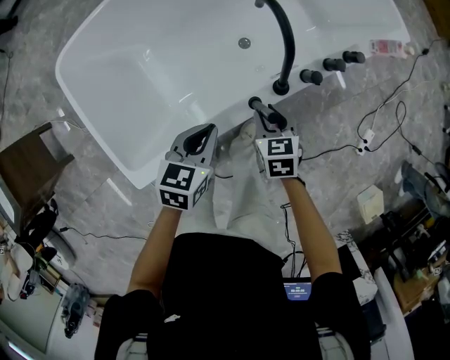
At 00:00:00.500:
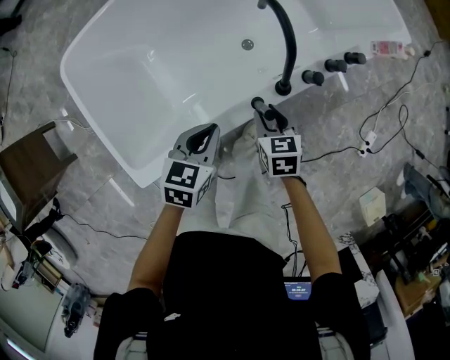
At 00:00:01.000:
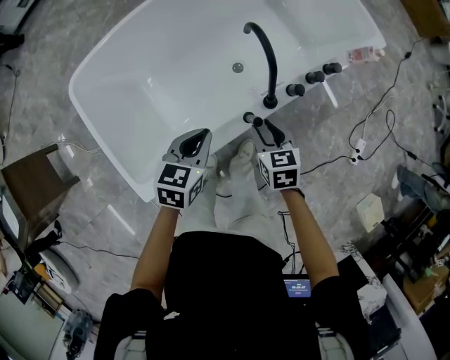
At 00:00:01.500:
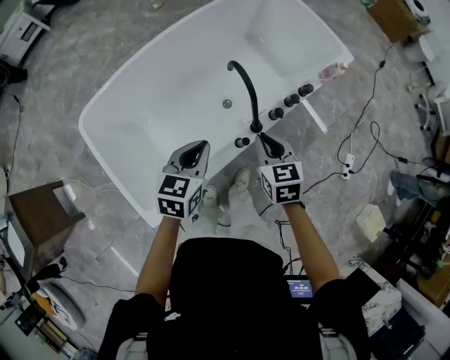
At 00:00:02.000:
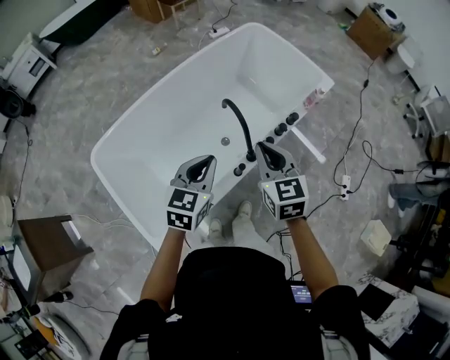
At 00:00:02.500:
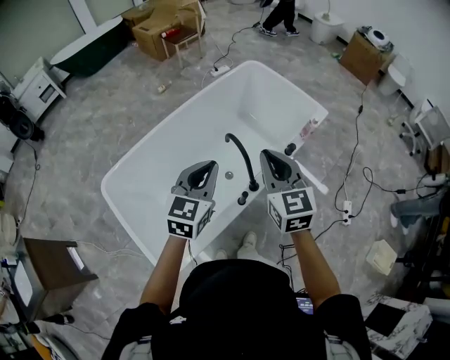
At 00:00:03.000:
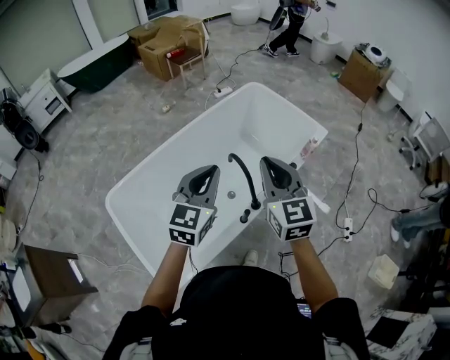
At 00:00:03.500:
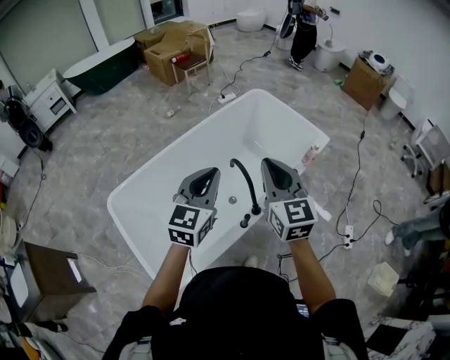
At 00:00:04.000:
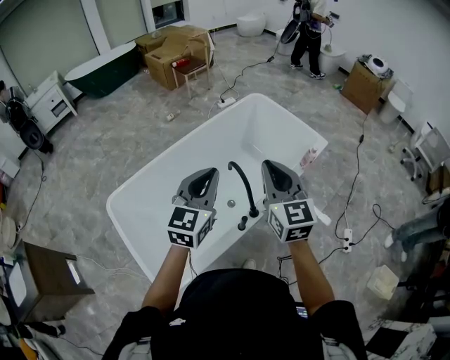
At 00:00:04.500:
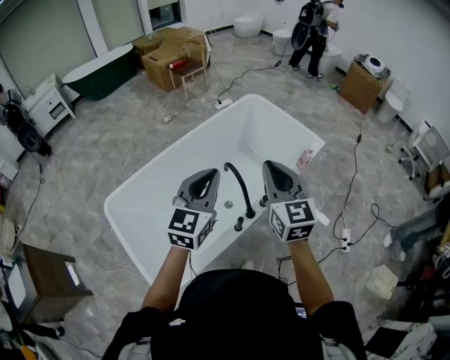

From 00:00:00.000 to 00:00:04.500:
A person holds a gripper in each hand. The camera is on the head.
From 00:00:00.000 to 00:00:02.000: The two grippers go some 30 cm upward. The right gripper tips its fingers upward by about 30 degrees, and closes up, while the left gripper changes its angle by roughly 30 degrees.
From 00:00:02.000 to 00:00:04.500: The grippers both shift upward by approximately 15 cm. The left gripper turns by roughly 20 degrees; the right gripper swivels approximately 20 degrees.

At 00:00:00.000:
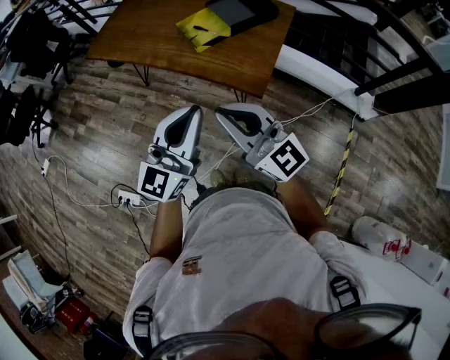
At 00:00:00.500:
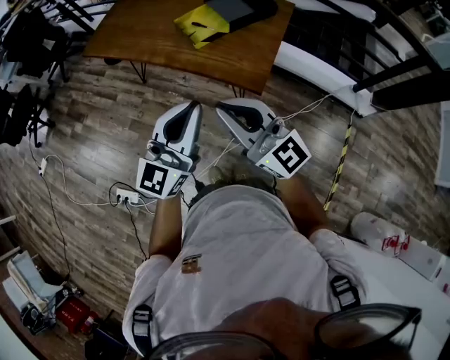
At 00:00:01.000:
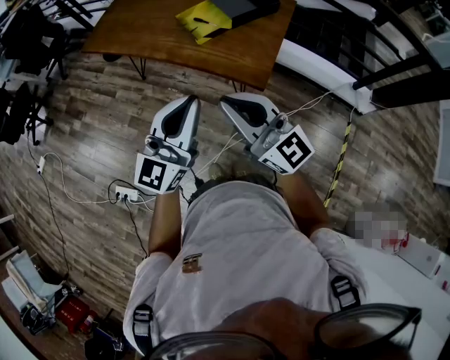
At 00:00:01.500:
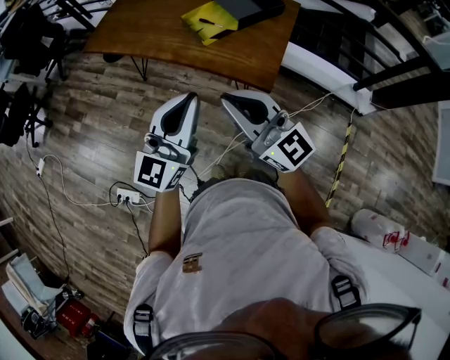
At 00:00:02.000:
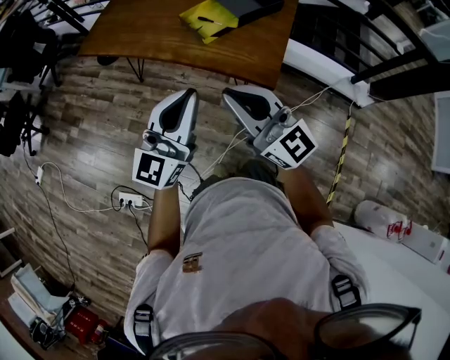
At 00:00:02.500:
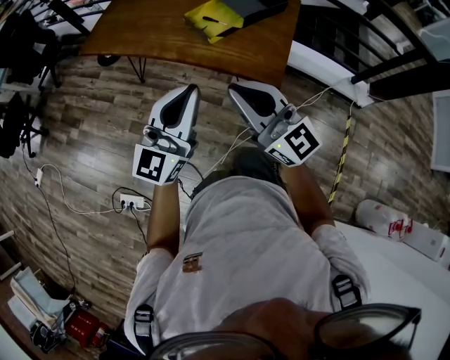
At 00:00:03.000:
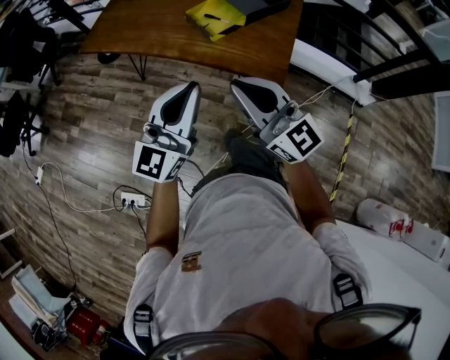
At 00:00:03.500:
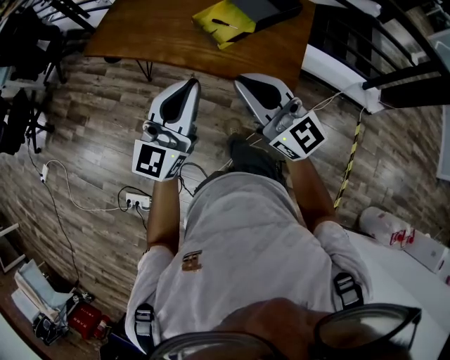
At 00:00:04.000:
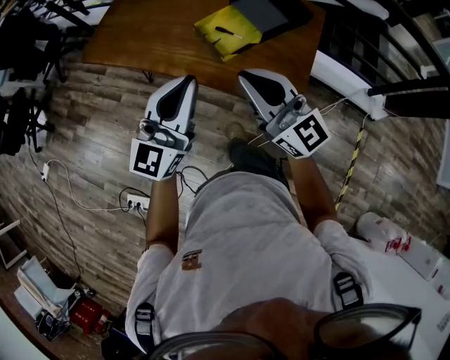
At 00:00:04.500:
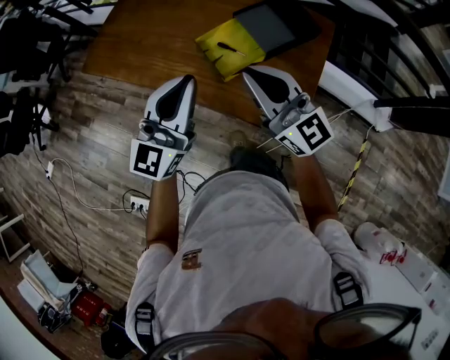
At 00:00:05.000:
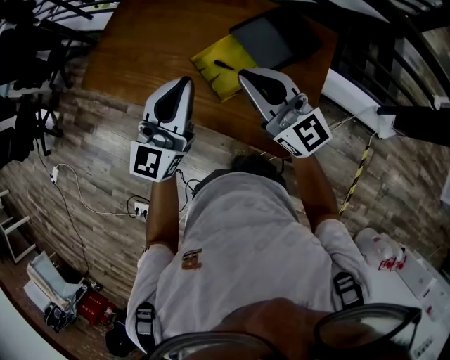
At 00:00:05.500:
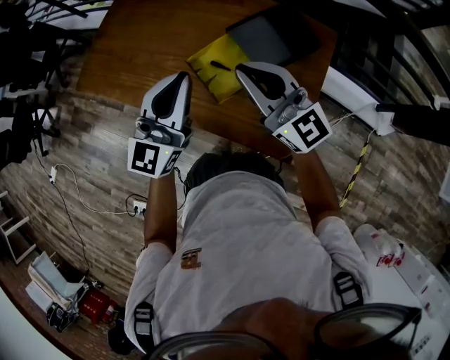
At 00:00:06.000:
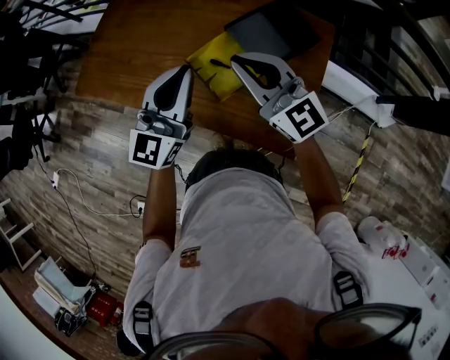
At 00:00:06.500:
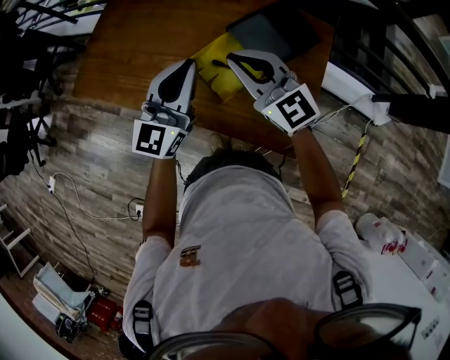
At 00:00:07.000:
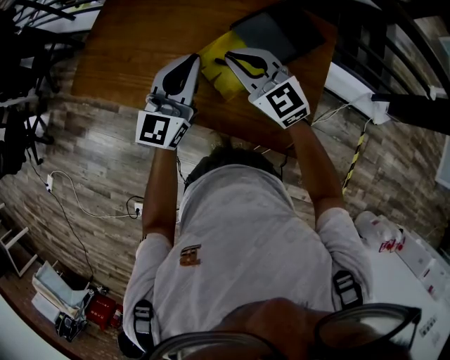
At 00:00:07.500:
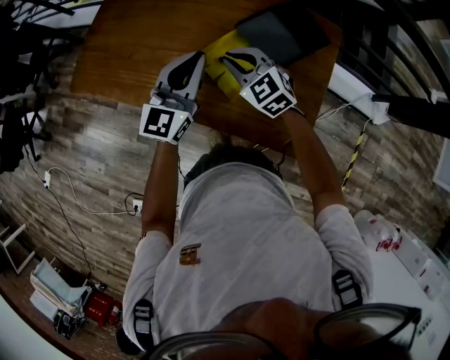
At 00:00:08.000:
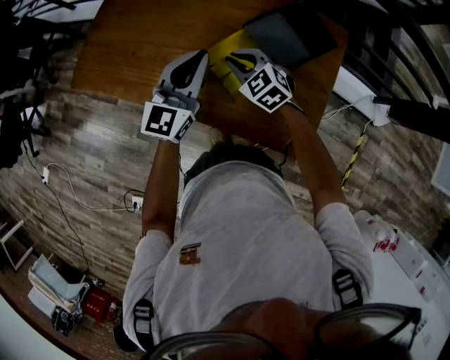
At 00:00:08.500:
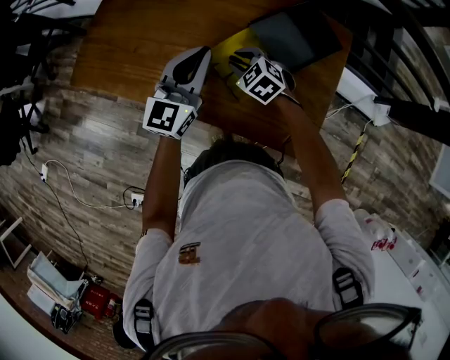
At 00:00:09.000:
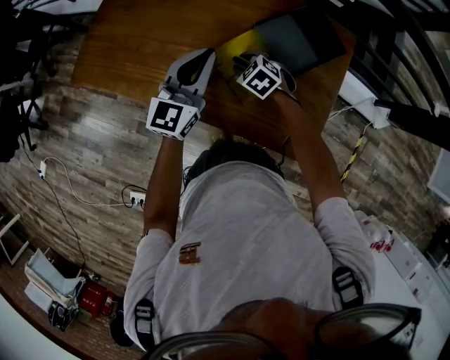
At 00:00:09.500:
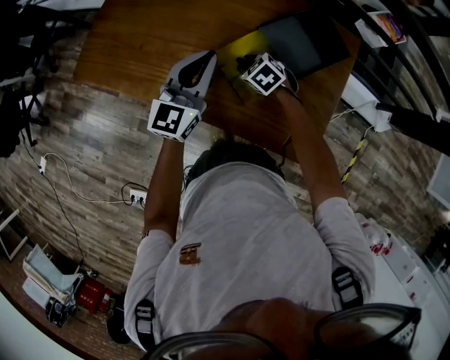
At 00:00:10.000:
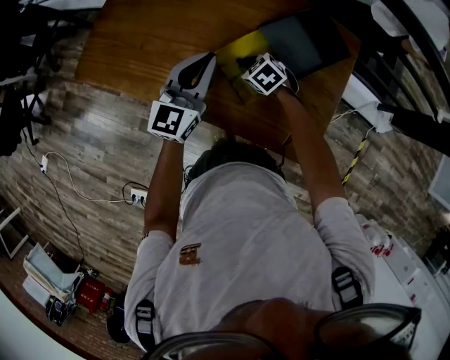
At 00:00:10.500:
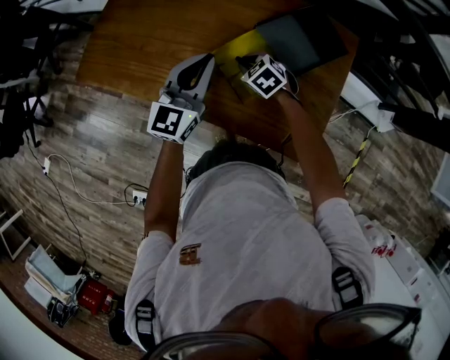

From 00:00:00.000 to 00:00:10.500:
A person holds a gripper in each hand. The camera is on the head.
From 00:00:00.000 to 00:00:02.000: The left gripper goes approximately 10 cm to the left and forward, while the right gripper moves to the left, roughly 10 cm.
From 00:00:02.000 to 00:00:04.000: The grippers both shift forward by roughly 20 cm.
From 00:00:04.000 to 00:00:06.500: Both grippers move forward, roughly 30 cm.
From 00:00:06.500 to 00:00:08.500: The right gripper goes some 25 cm downward, and points its fingers approximately 50 degrees further downward; the left gripper moves forward and downward, roughly 10 cm.

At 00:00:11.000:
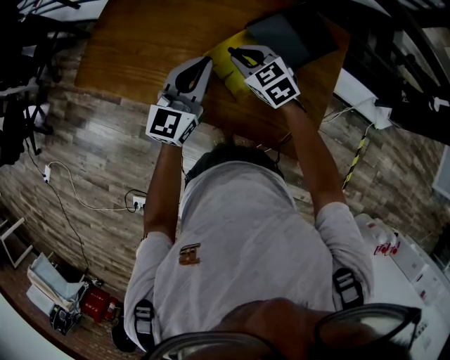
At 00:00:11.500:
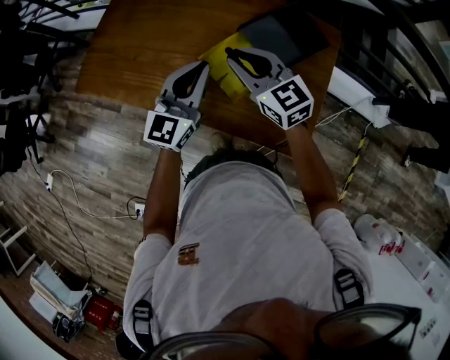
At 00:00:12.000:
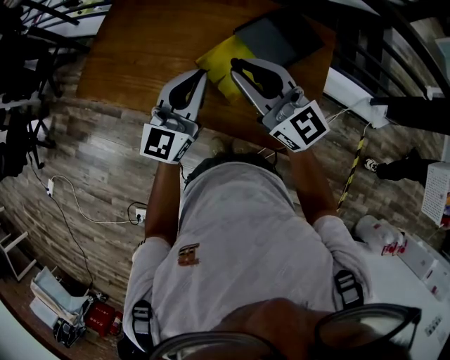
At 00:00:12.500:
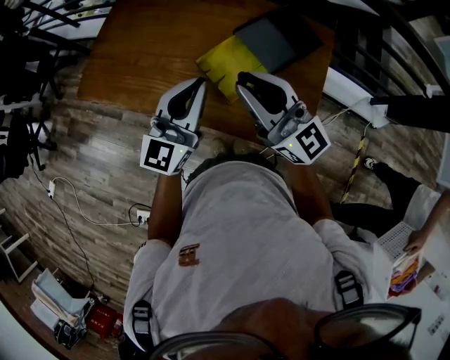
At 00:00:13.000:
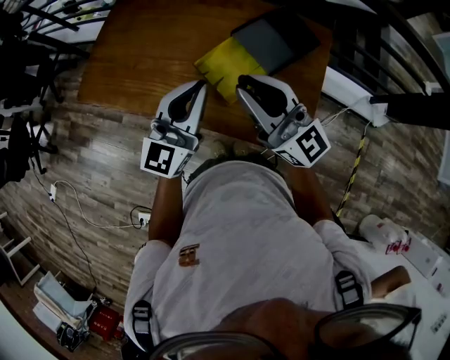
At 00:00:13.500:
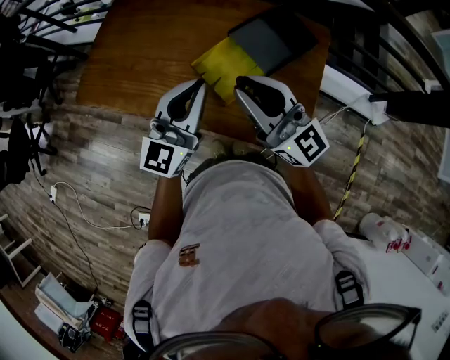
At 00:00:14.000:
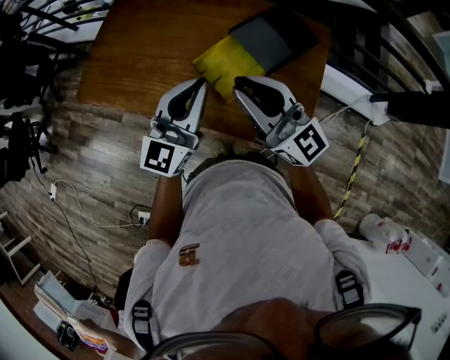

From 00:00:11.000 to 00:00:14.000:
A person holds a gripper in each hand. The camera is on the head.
From 00:00:11.000 to 00:00:12.500: The left gripper travels backward and upward by approximately 10 cm. Meanwhile the right gripper is displaced upward and backward by about 25 cm, and tilts its fingers about 50 degrees upward.
From 00:00:12.500 to 00:00:14.000: There are only small adjustments of the grippers.

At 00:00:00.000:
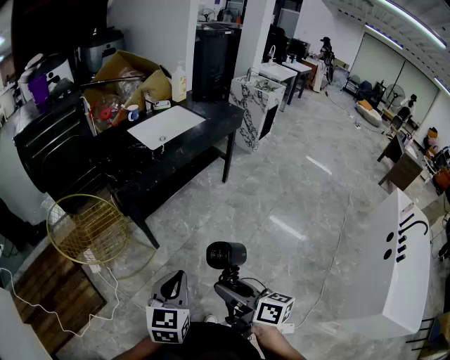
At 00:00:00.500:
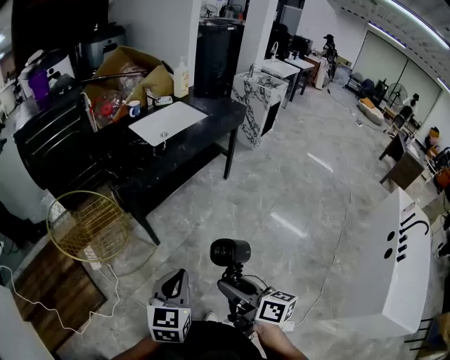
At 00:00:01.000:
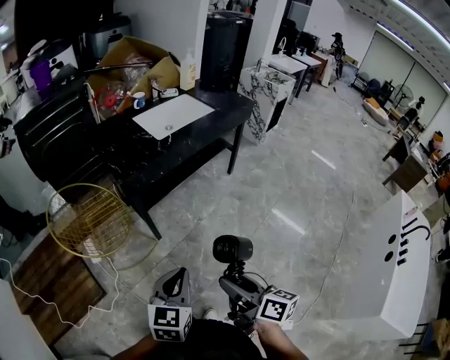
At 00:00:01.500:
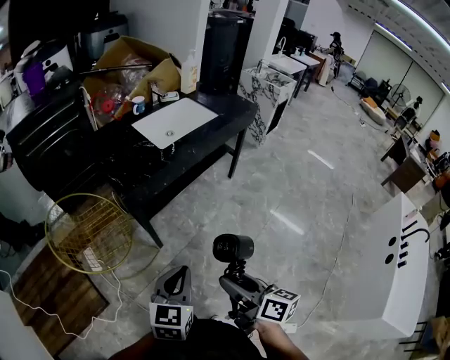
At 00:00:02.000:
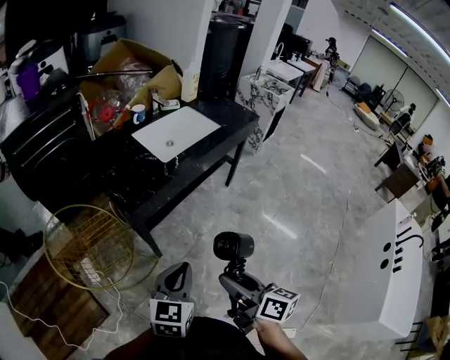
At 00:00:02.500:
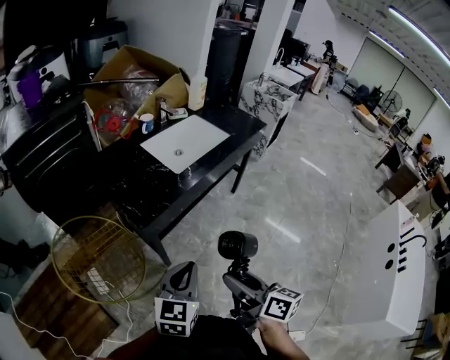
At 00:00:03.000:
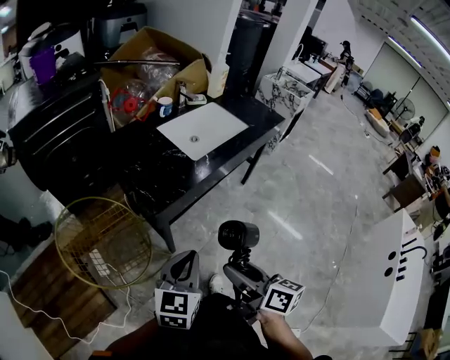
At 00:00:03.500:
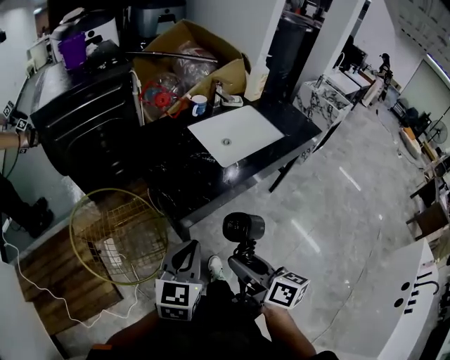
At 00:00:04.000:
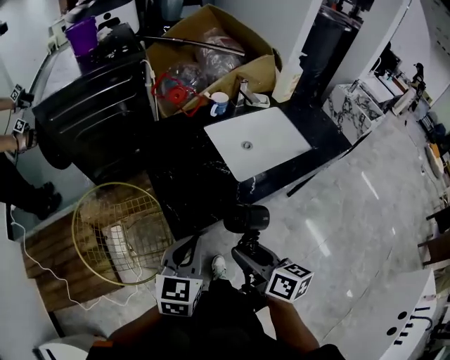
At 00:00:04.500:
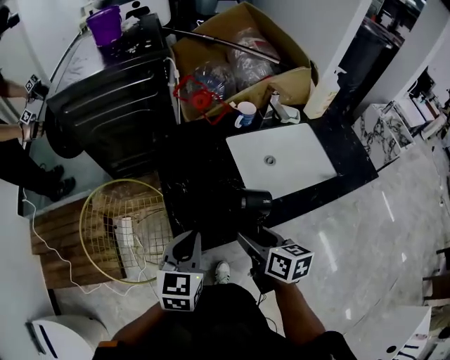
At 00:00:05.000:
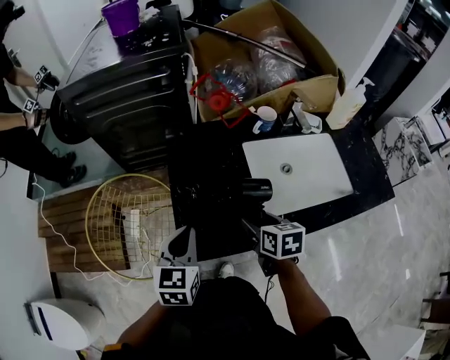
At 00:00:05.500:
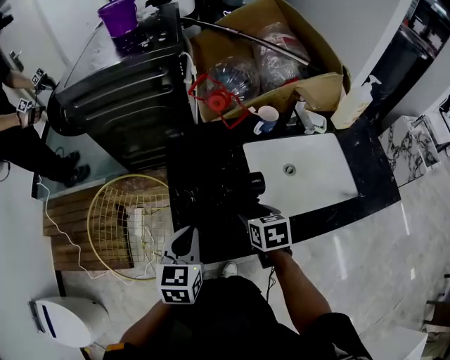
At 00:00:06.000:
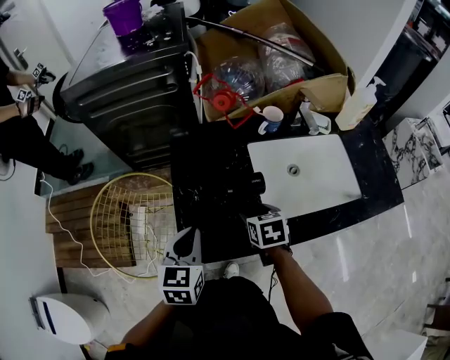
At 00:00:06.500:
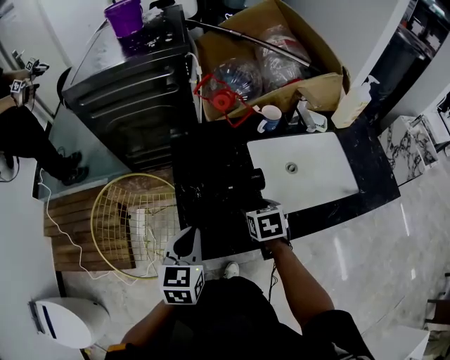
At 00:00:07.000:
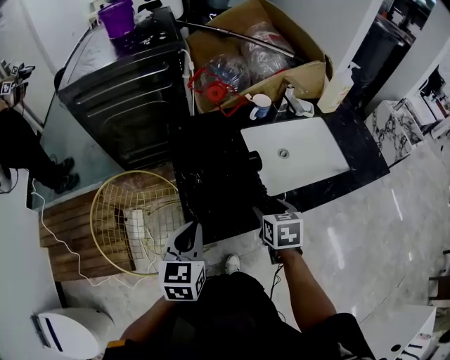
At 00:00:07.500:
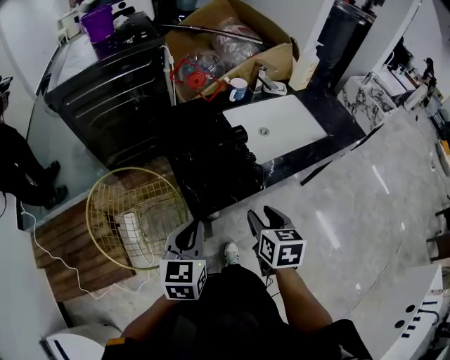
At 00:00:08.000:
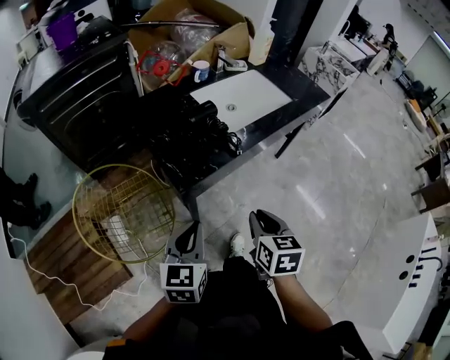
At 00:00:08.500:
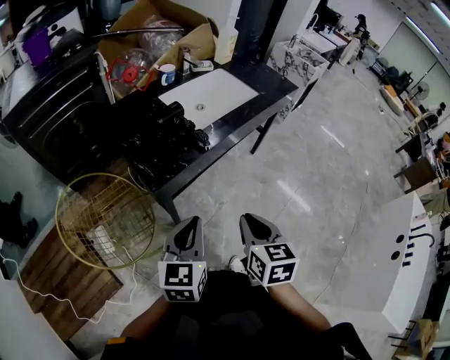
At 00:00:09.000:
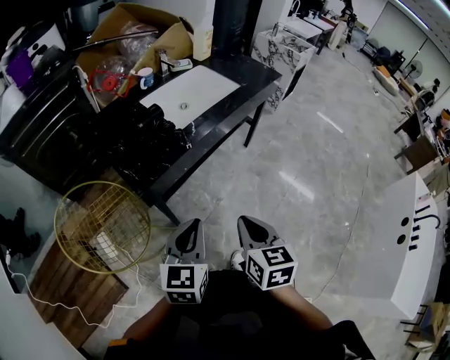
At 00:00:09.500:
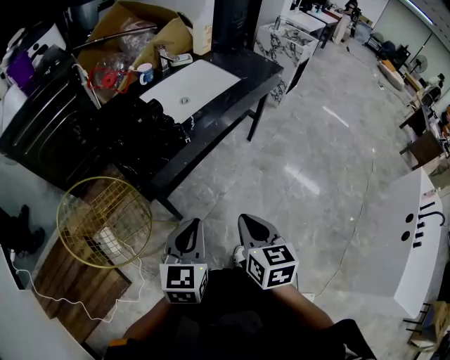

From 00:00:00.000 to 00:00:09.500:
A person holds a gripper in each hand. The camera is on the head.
From 00:00:00.000 to 00:00:02.000: The two grippers go some 20 cm forward.
From 00:00:02.000 to 00:00:04.000: The right gripper travels forward by approximately 30 cm, and changes its angle by some 20 degrees, while the left gripper shifts some 25 cm forward and to the left, and rotates some 20 degrees.
From 00:00:04.000 to 00:00:05.500: The right gripper is displaced forward and downward by roughly 30 cm, and angles its fingers downward, by about 30 degrees. Meanwhile the left gripper goes about 15 cm forward, and changes its angle by some 20 degrees.
From 00:00:05.500 to 00:00:07.500: Both grippers move backward, roughly 20 cm. The right gripper turns by about 30 degrees.
From 00:00:07.500 to 00:00:09.500: The left gripper heads to the right and backward, covering about 20 cm, and changes its angle by approximately 20 degrees, while the right gripper is displaced backward and to the right by some 25 cm, and closes.
